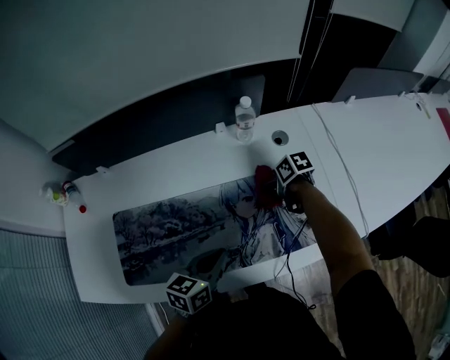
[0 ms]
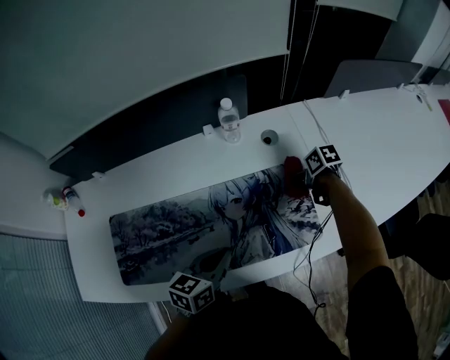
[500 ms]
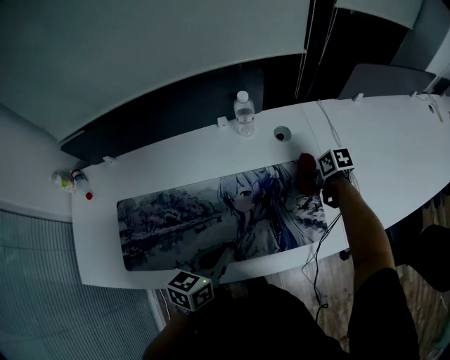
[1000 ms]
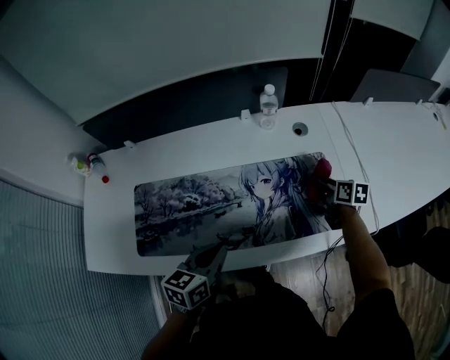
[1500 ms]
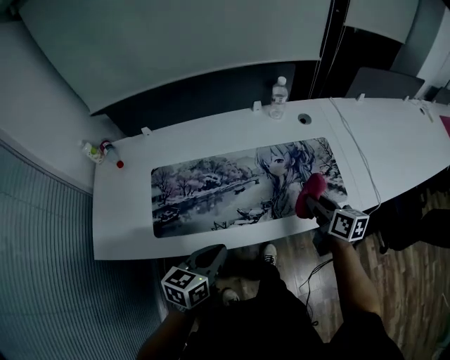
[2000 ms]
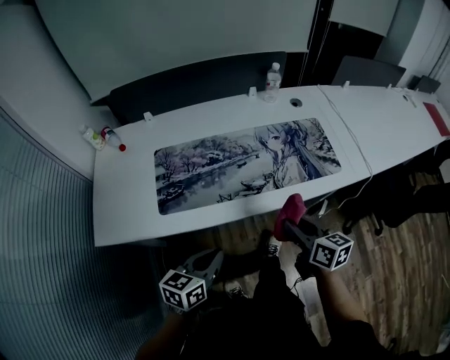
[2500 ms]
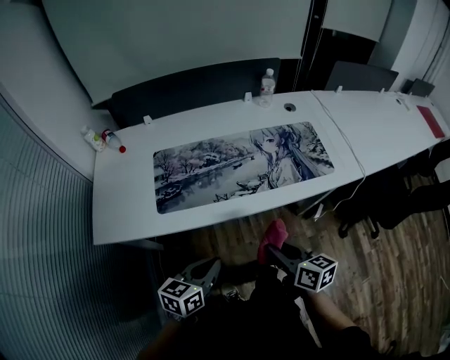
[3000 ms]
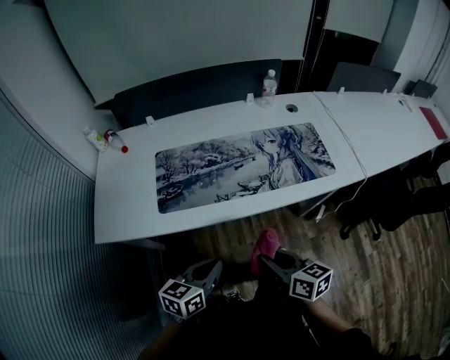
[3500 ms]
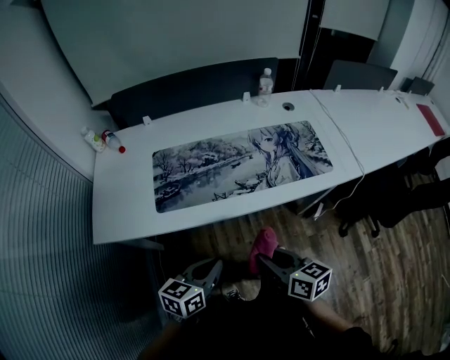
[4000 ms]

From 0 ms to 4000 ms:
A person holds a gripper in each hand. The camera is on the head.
From 0 ms to 2000 ms: The right gripper heads backward and upward, covering approximately 25 cm, and angles its fingers upward, by some 30 degrees; the left gripper goes approximately 20 cm backward and to the left.
From 2000 ms to 4000 ms: The left gripper is displaced backward by roughly 15 cm. Meanwhile the right gripper goes roughly 35 cm backward and to the left.

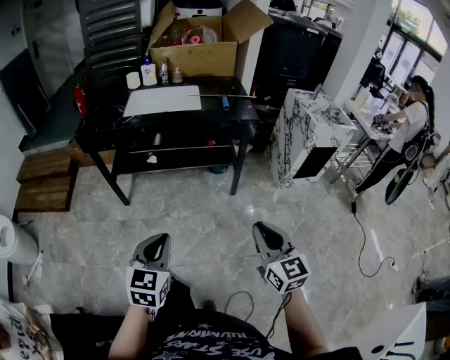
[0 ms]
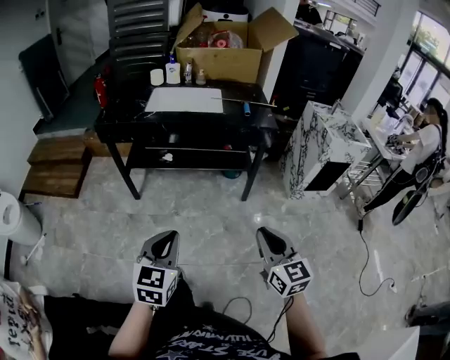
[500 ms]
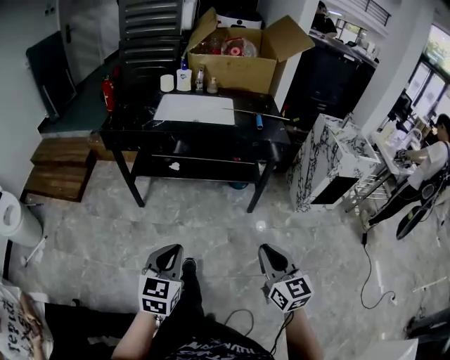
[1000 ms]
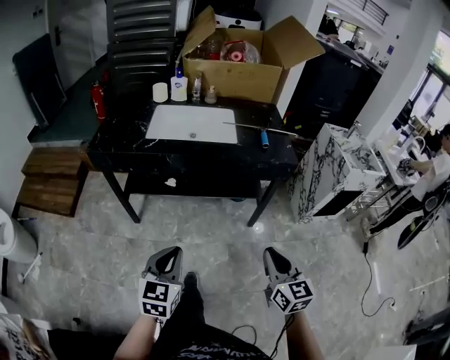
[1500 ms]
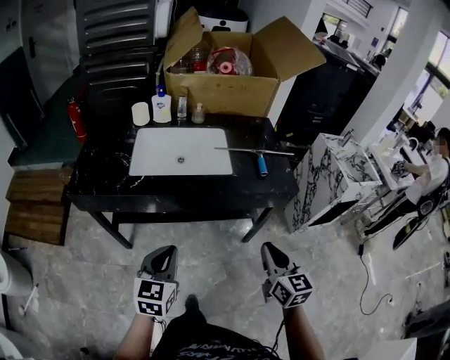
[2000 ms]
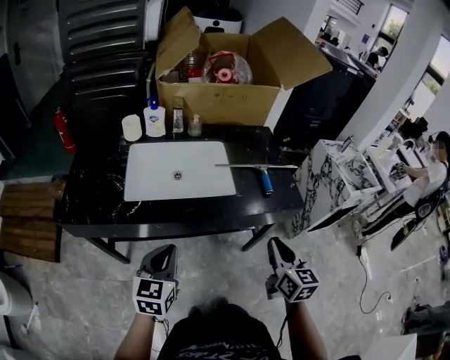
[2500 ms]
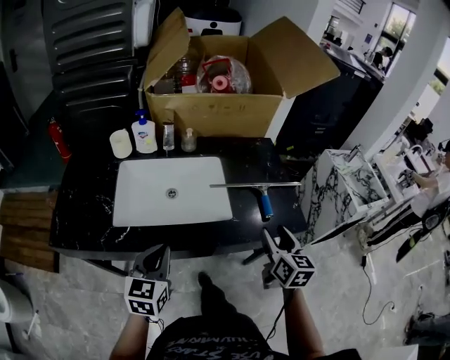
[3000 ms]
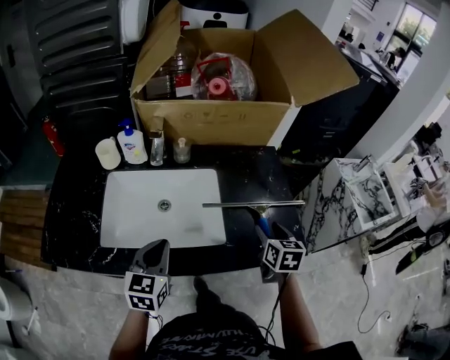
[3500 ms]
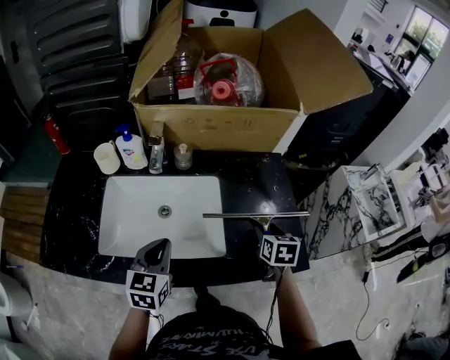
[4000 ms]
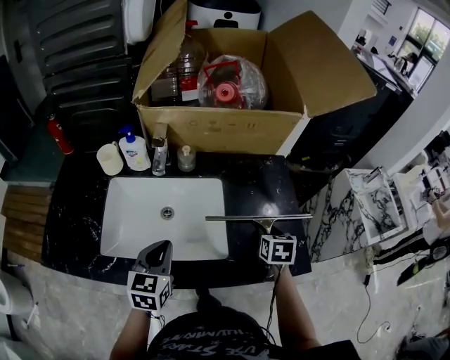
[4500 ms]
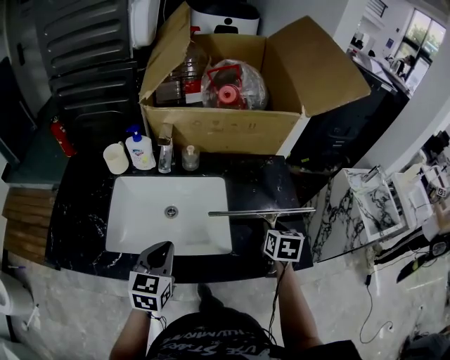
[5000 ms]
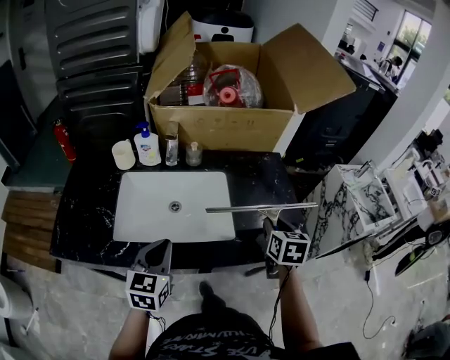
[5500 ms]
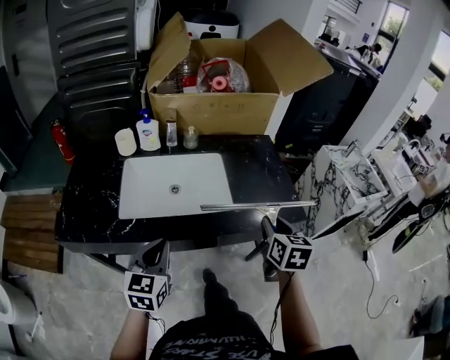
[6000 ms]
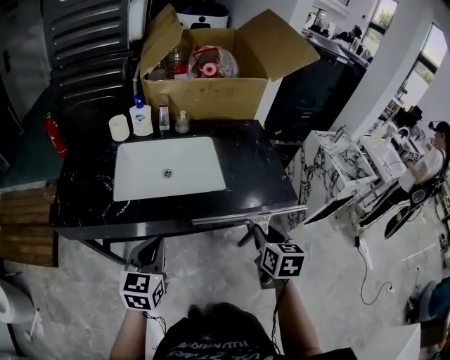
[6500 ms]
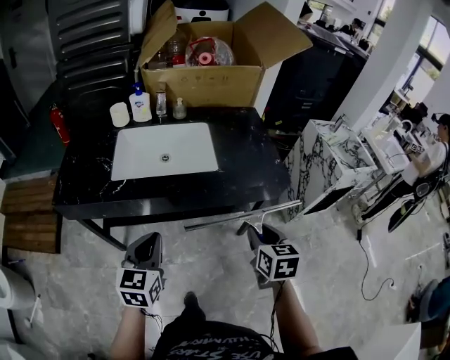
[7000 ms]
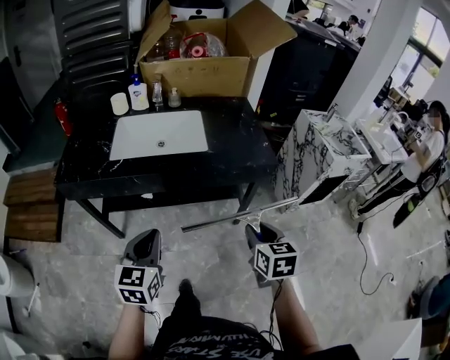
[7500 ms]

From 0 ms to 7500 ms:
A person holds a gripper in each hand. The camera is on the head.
From 0 ms to 2000 ms: The two grippers travel together, forward, approximately 40 cm.
From 2000 ms to 4000 ms: The two grippers travel together, forward, roughly 40 cm. The right gripper swivels roughly 30 degrees, and opens up.
From 4000 ms to 5500 ms: The right gripper heads upward and backward, covering roughly 10 cm; the left gripper travels backward by some 10 cm.
From 5500 ms to 7500 ms: Both grippers move backward, approximately 40 cm.

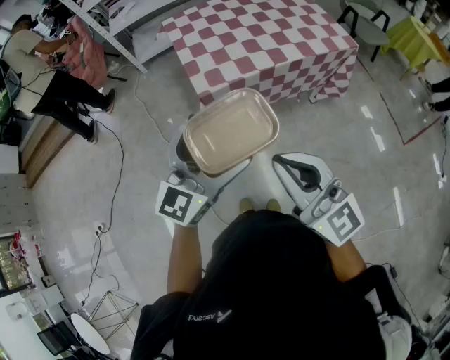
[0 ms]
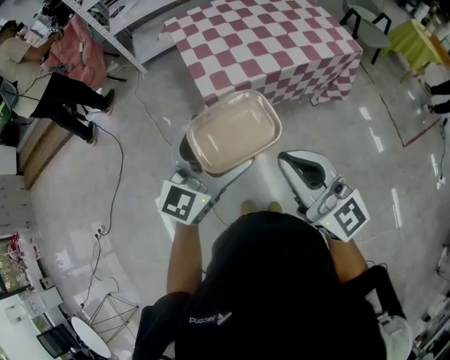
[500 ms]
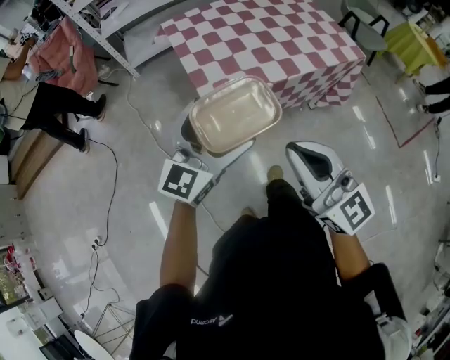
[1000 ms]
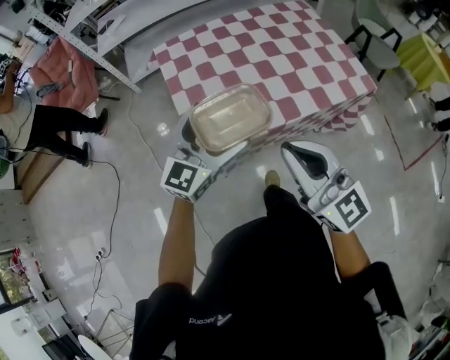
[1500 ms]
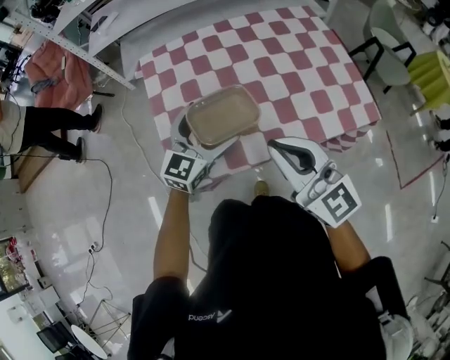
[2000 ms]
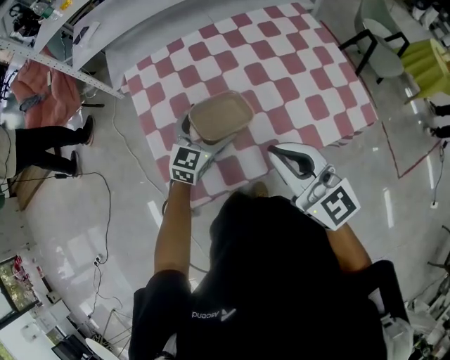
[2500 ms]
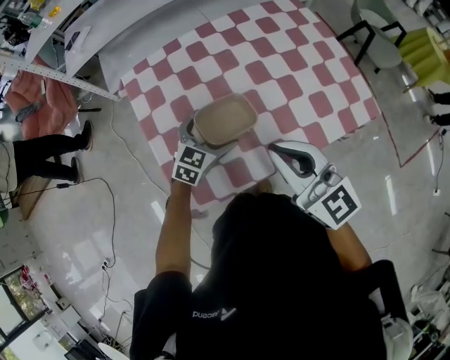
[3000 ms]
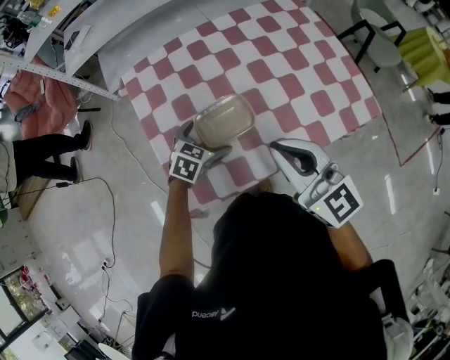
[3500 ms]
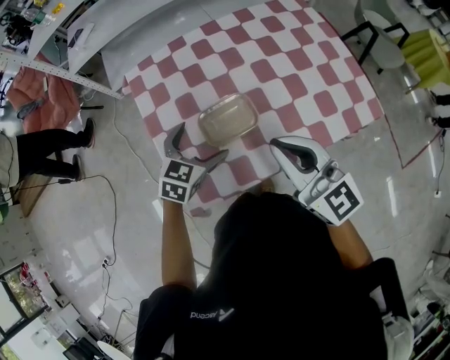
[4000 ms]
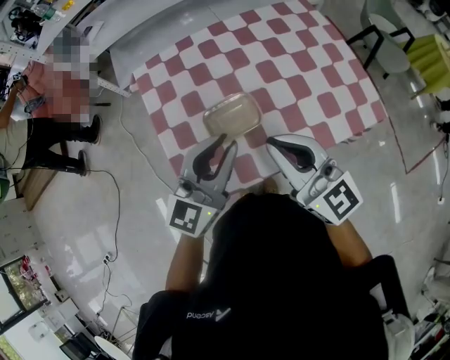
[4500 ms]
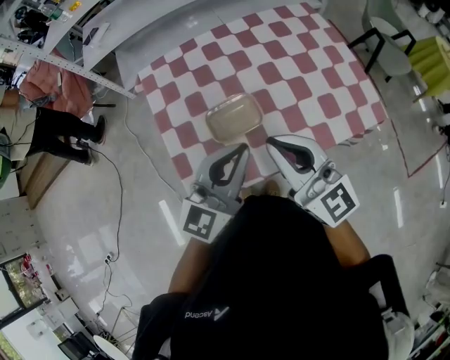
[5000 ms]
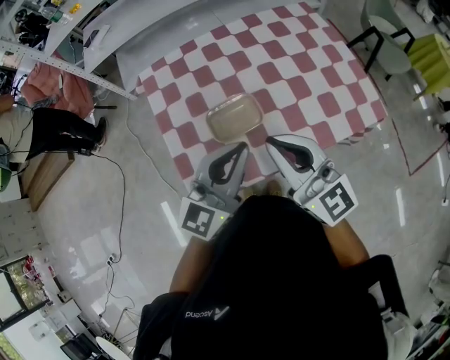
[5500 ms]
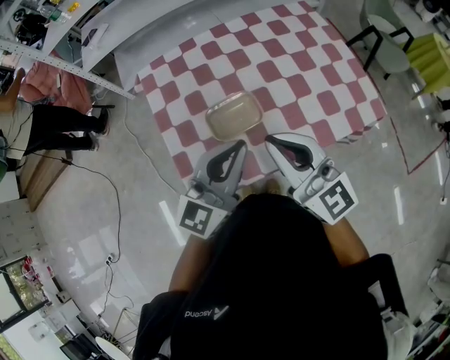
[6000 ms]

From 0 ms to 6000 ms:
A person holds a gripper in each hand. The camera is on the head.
From 0 ms to 2000 ms: The two grippers travel together, forward, about 50 cm.
From 2000 ms to 4000 ms: The right gripper travels forward by approximately 5 cm. The left gripper heads downward, covering about 10 cm, and rotates roughly 30 degrees.
From 4000 ms to 6000 ms: The left gripper shifts roughly 20 cm upward, backward and to the right, angles its fingers upward, by approximately 40 degrees, and closes.

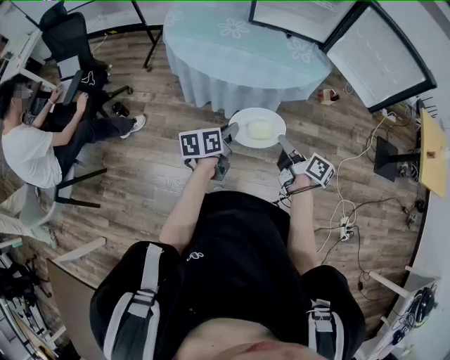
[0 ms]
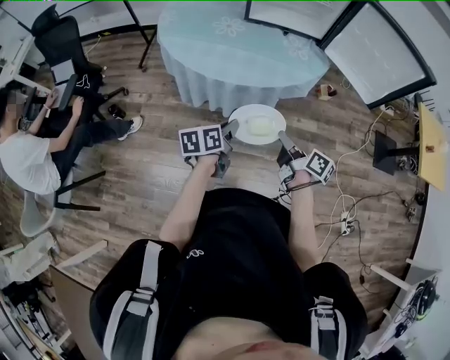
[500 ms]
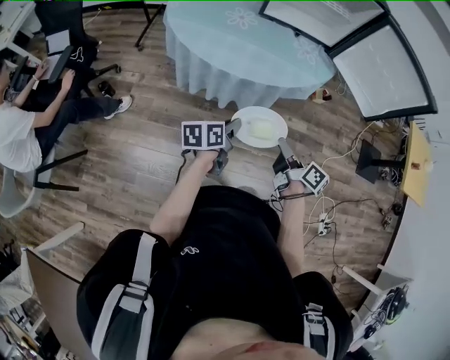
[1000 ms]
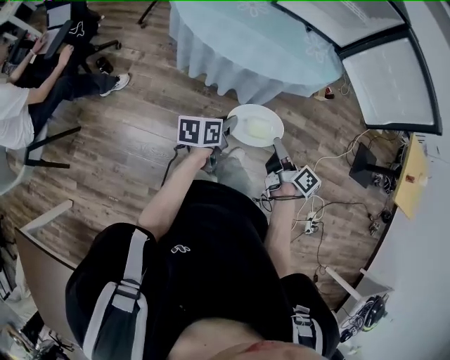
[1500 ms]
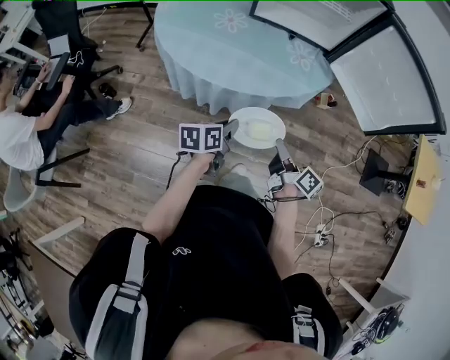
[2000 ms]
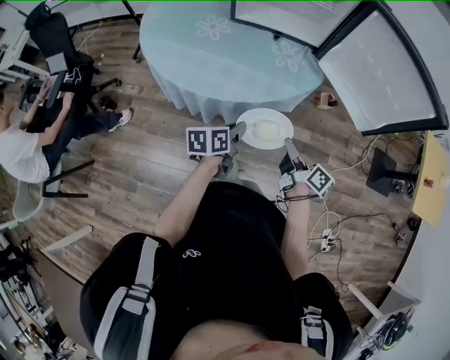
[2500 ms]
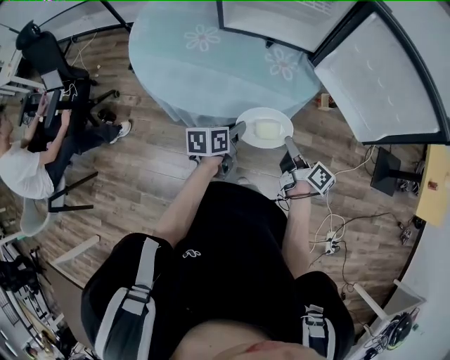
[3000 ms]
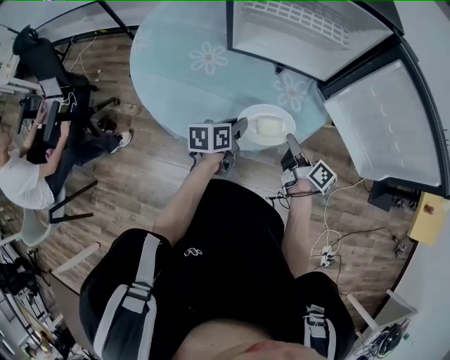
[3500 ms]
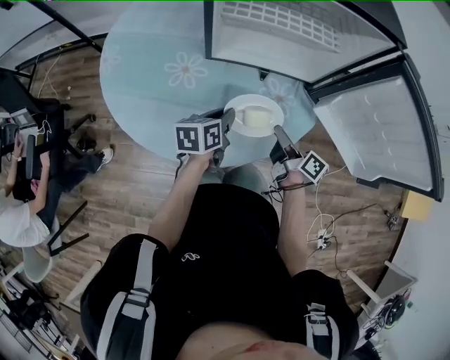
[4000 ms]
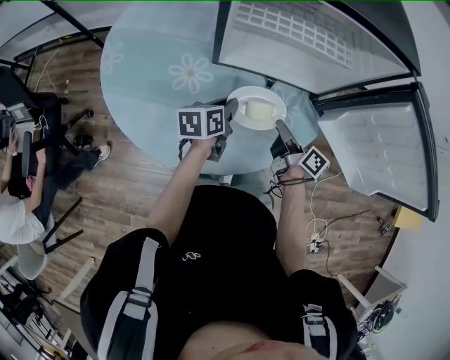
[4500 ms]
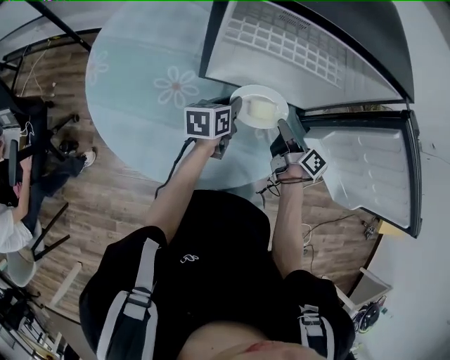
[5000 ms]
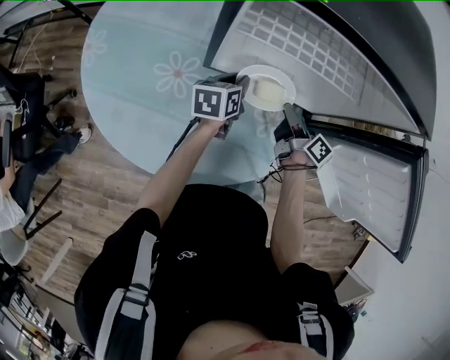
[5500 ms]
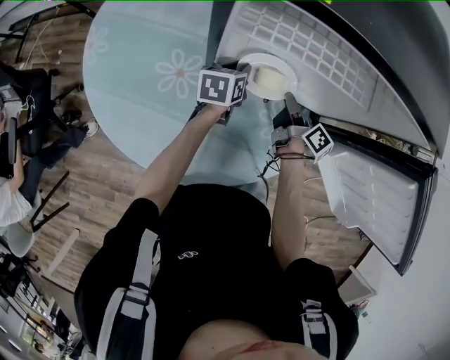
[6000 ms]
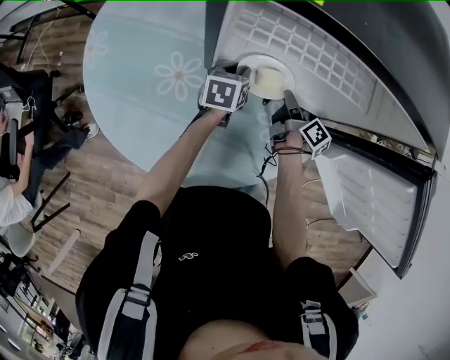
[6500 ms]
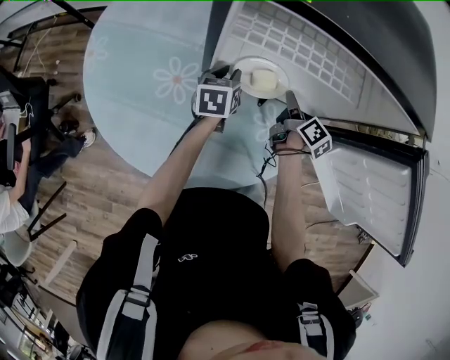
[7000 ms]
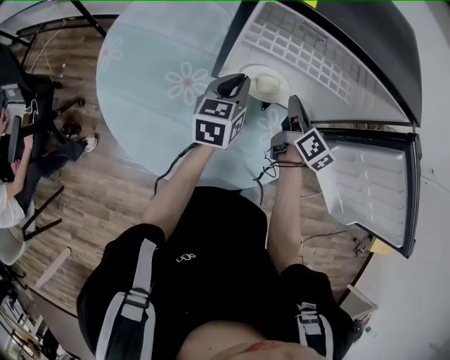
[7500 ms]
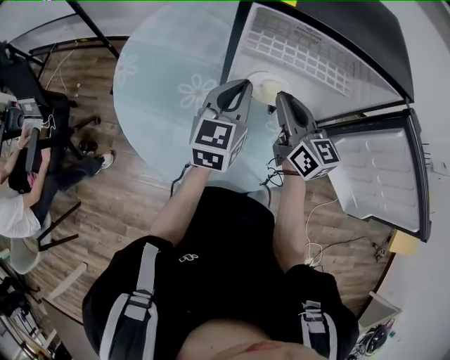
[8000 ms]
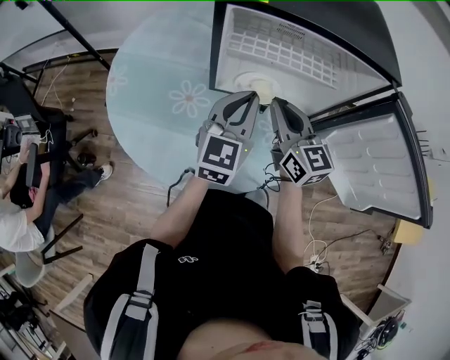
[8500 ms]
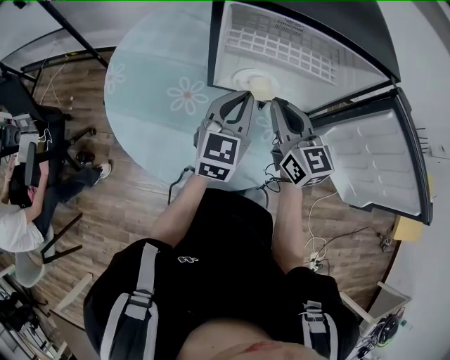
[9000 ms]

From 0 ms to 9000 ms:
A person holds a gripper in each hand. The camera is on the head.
From 0 ms to 2000 ms: The grippers both shift forward and to the right by about 10 cm.
From 2000 ms to 4500 ms: The two grippers go approximately 40 cm forward.
From 4500 ms to 7000 ms: The two grippers go some 15 cm forward. The left gripper rotates roughly 20 degrees.
From 7000 ms to 9000 ms: The left gripper heads upward and backward, covering some 25 cm, points its fingers some 30 degrees further upward, and closes; the right gripper travels upward, to the left and backward by roughly 25 cm, rolls counterclockwise, seen from behind, by roughly 60 degrees, and closes its fingers.
